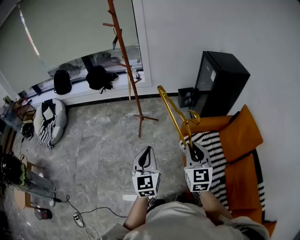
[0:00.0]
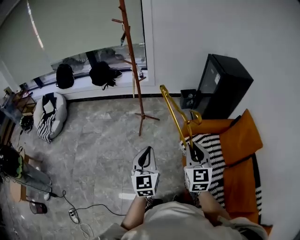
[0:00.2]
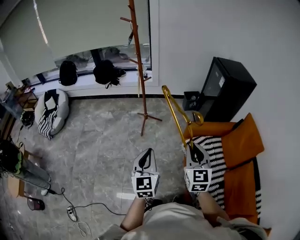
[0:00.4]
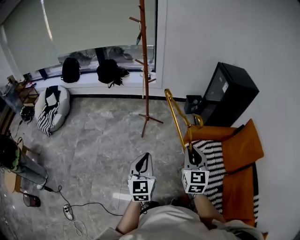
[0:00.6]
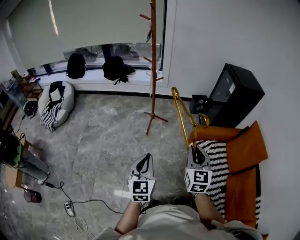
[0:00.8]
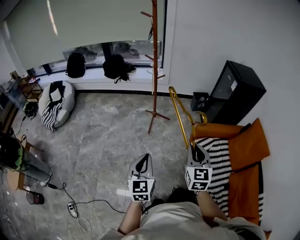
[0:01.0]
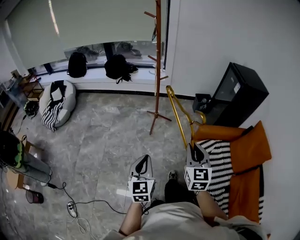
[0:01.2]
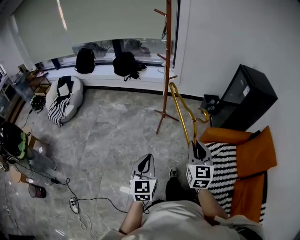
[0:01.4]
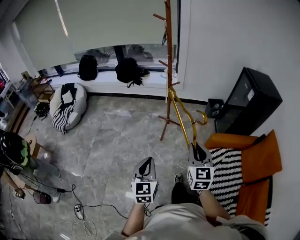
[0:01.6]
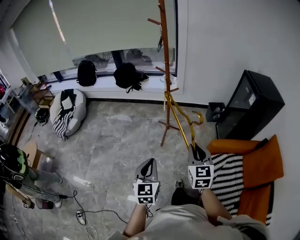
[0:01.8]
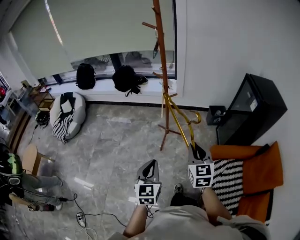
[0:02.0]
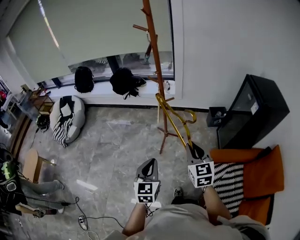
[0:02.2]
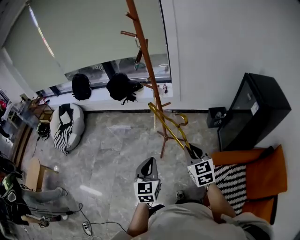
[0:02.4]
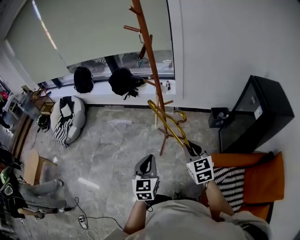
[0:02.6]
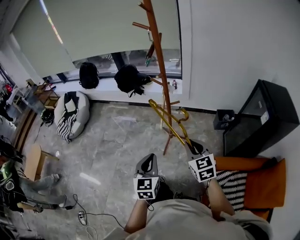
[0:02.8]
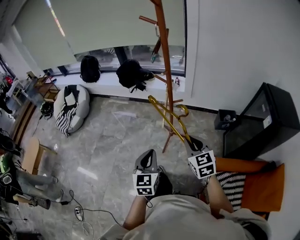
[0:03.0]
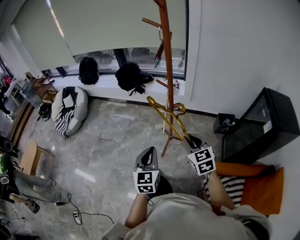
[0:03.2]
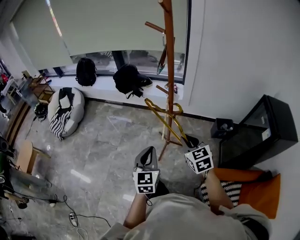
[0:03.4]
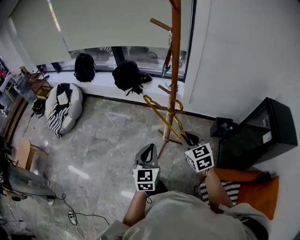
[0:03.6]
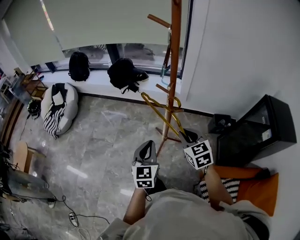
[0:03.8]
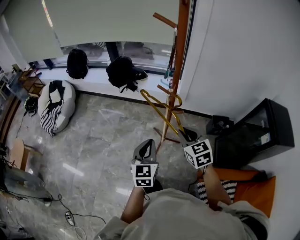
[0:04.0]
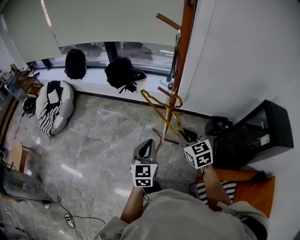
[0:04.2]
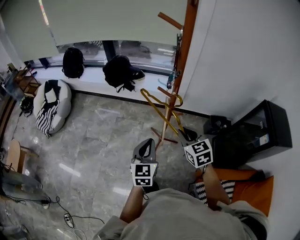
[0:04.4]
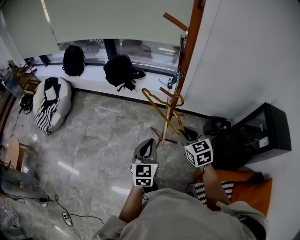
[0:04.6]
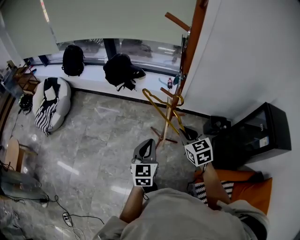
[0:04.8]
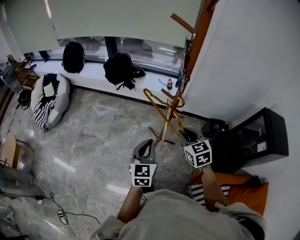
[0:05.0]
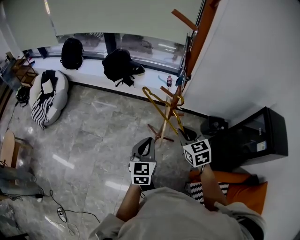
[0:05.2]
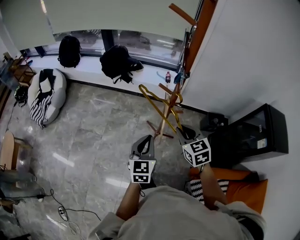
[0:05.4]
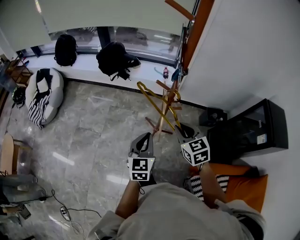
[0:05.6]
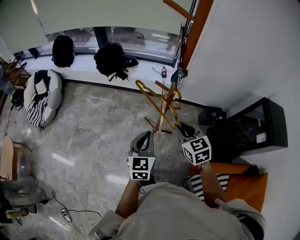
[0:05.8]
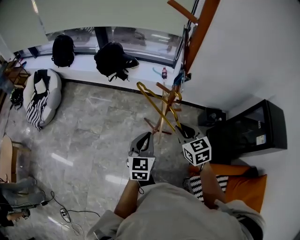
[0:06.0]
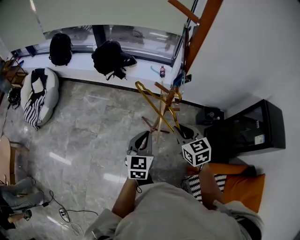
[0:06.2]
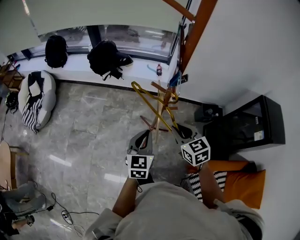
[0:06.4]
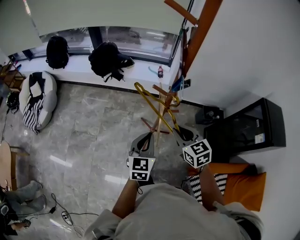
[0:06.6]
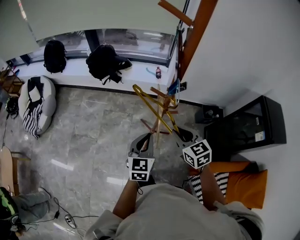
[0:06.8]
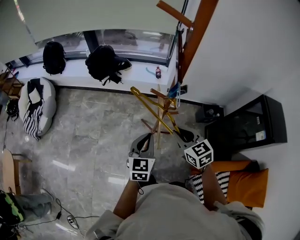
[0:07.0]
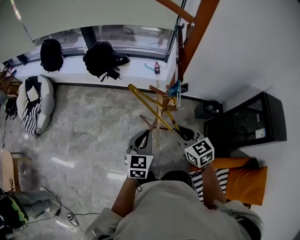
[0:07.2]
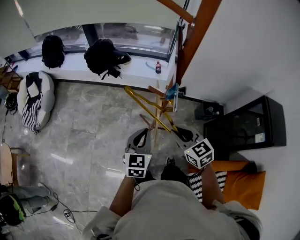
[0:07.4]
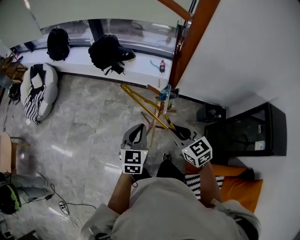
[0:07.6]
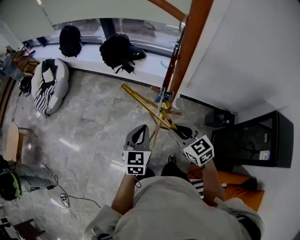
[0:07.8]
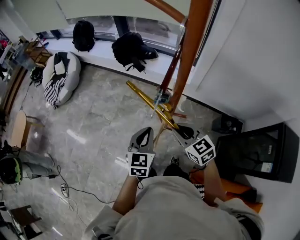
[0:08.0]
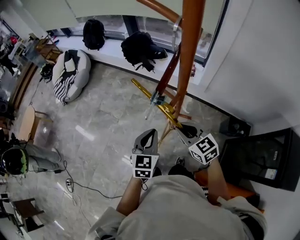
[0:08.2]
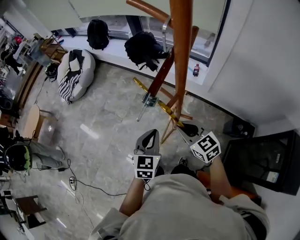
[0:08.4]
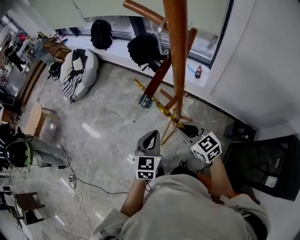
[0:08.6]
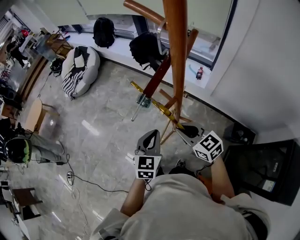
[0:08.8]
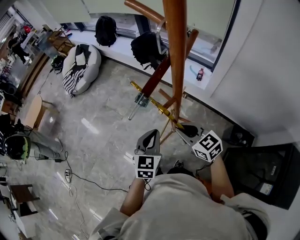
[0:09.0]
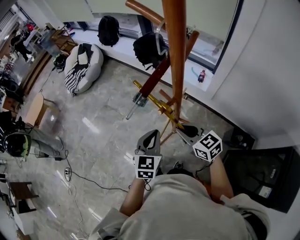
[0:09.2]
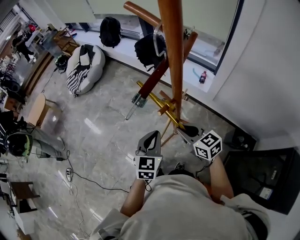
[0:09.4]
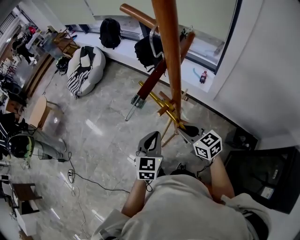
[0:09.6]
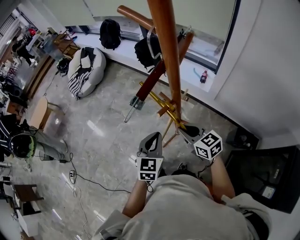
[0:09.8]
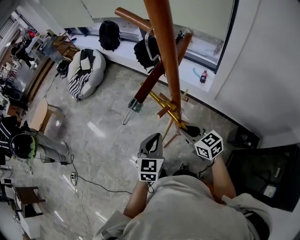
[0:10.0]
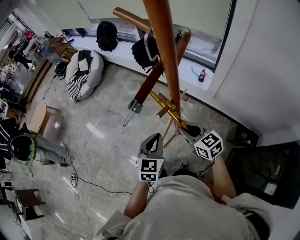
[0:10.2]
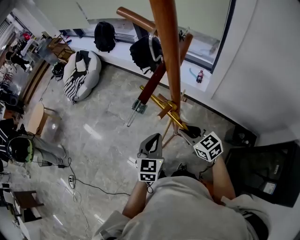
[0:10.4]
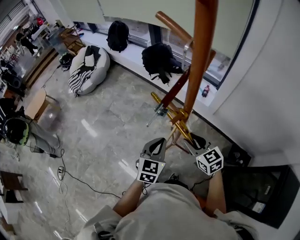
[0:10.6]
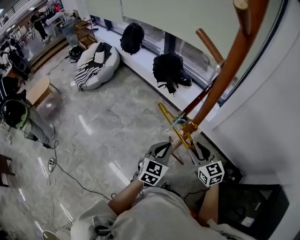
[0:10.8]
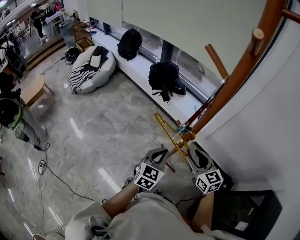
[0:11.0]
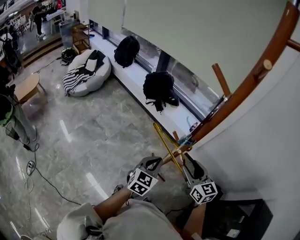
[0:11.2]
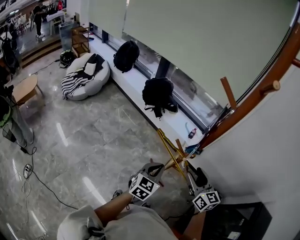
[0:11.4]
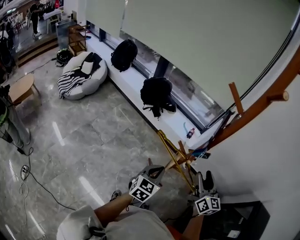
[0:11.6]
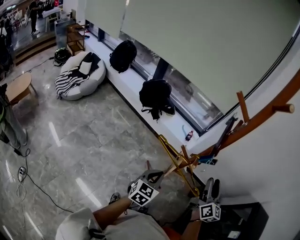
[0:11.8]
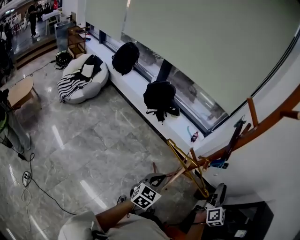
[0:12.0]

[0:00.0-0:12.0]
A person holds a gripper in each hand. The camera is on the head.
0.0 to 1.6 s: The left gripper shifts approximately 20 cm to the left. The right gripper goes approximately 20 cm to the left and forward.
1.6 to 3.0 s: Both grippers travel together forward, about 30 cm. The right gripper turns by approximately 30 degrees.
3.0 to 4.4 s: Both grippers travel together forward, some 20 cm.
4.4 to 6.0 s: The left gripper heads forward, covering approximately 5 cm.
6.0 to 7.6 s: The left gripper heads forward, covering some 10 cm.
7.6 to 9.0 s: The left gripper moves approximately 5 cm, and turns by about 20 degrees; the right gripper shifts by some 5 cm, and swivels about 30 degrees.
9.0 to 10.4 s: The grippers move only a little.
10.4 to 12.0 s: The right gripper moves upward, some 15 cm, tips its fingers upward by approximately 30 degrees, and opens its fingers, while the left gripper changes place by roughly 10 cm, and turns by about 20 degrees.

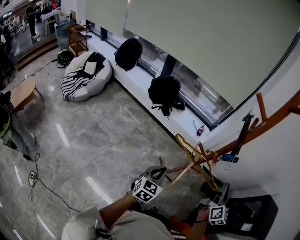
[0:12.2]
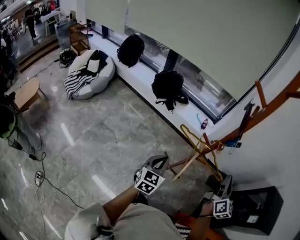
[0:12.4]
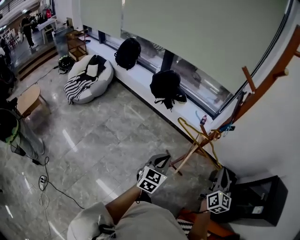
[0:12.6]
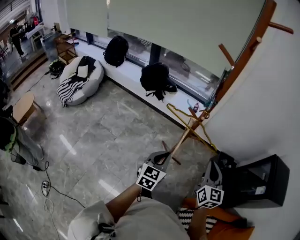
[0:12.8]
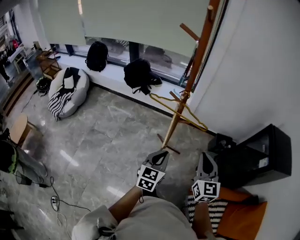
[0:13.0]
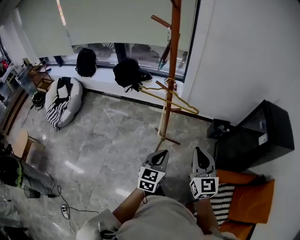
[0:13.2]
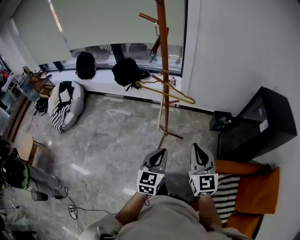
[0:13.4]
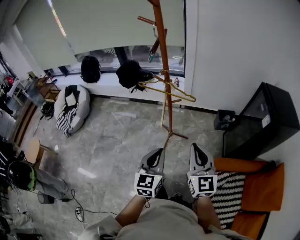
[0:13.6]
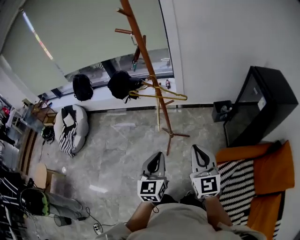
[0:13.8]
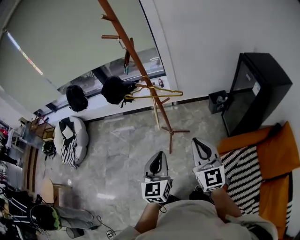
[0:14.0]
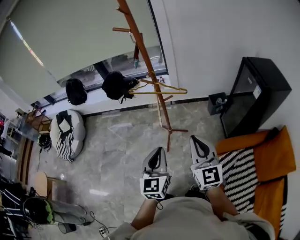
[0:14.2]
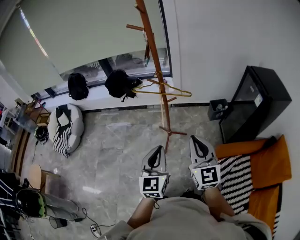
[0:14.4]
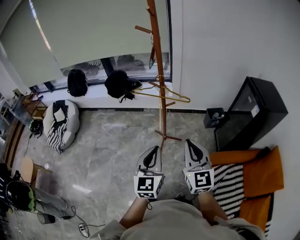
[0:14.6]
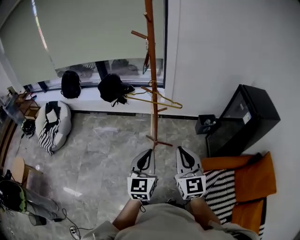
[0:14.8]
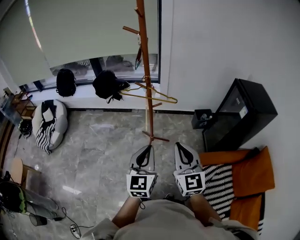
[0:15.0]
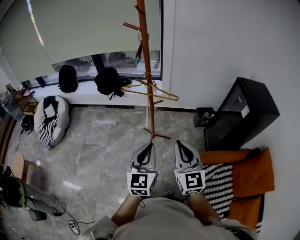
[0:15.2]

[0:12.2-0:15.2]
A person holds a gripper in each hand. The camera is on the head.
12.2 to 13.8 s: The right gripper travels backward by some 35 cm, and changes its angle by about 30 degrees. Meanwhile the left gripper moves backward and to the right, approximately 35 cm.

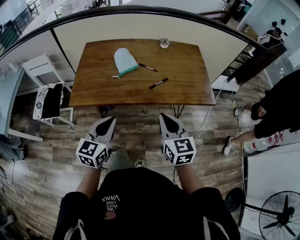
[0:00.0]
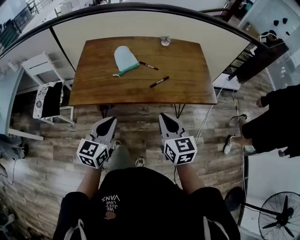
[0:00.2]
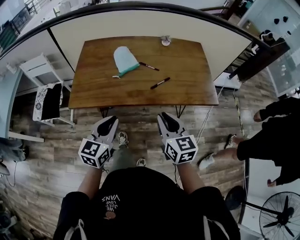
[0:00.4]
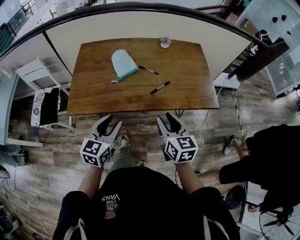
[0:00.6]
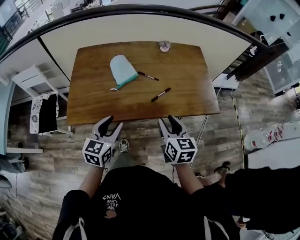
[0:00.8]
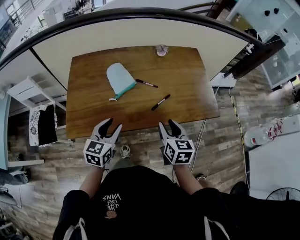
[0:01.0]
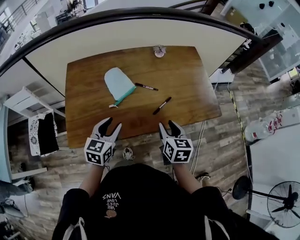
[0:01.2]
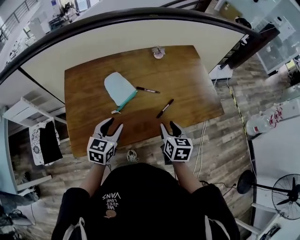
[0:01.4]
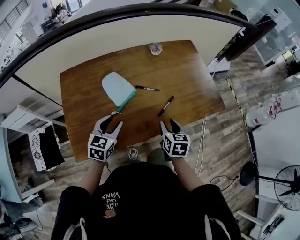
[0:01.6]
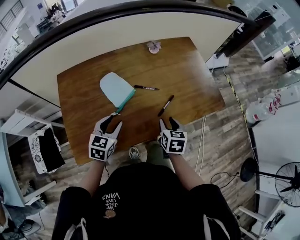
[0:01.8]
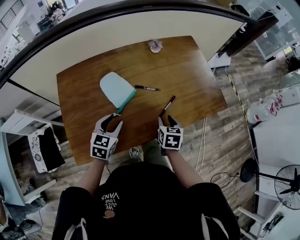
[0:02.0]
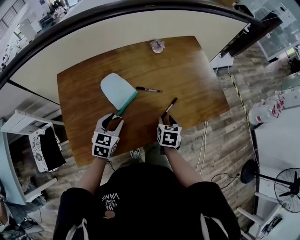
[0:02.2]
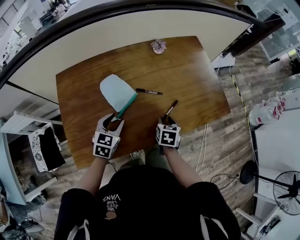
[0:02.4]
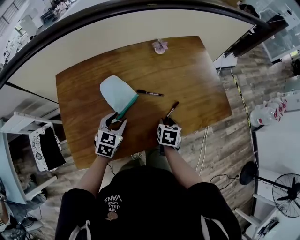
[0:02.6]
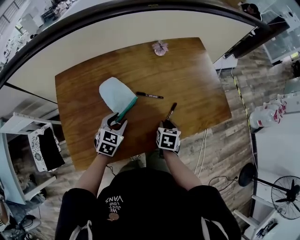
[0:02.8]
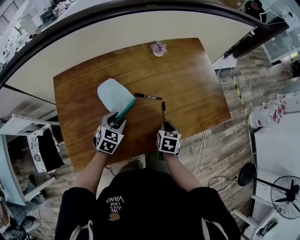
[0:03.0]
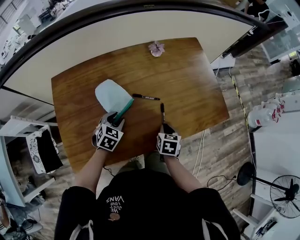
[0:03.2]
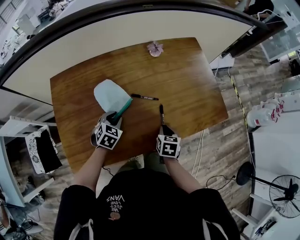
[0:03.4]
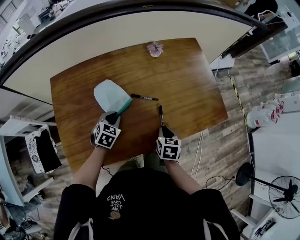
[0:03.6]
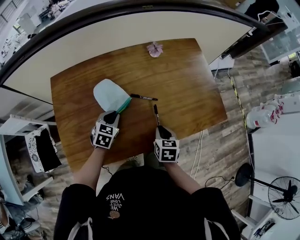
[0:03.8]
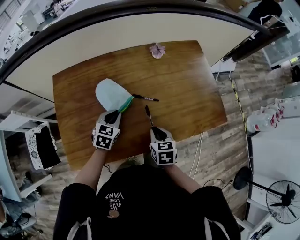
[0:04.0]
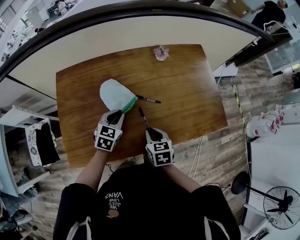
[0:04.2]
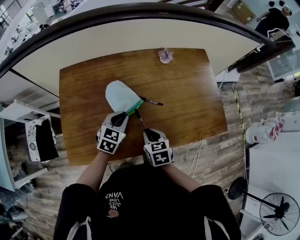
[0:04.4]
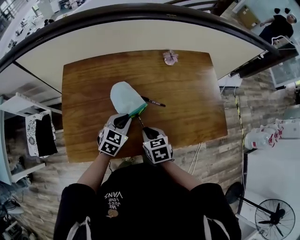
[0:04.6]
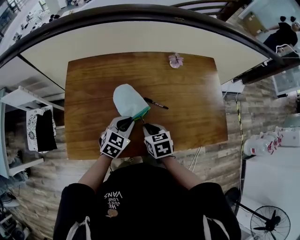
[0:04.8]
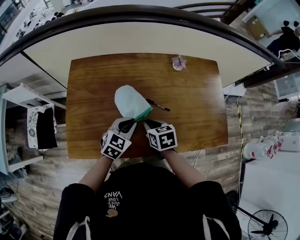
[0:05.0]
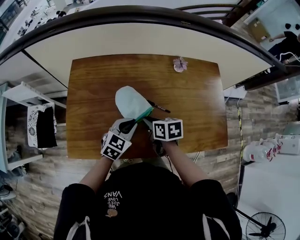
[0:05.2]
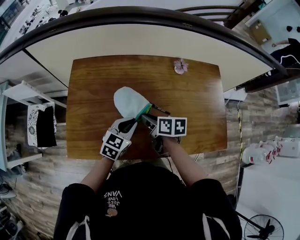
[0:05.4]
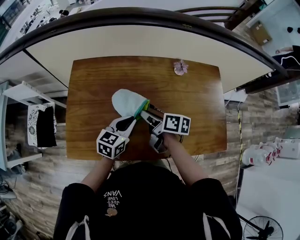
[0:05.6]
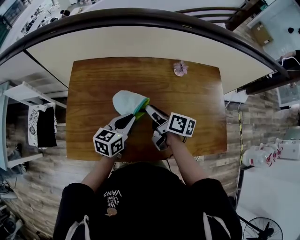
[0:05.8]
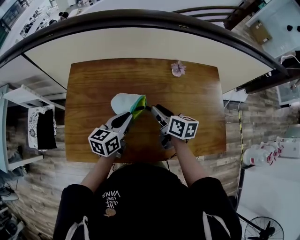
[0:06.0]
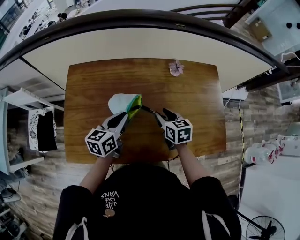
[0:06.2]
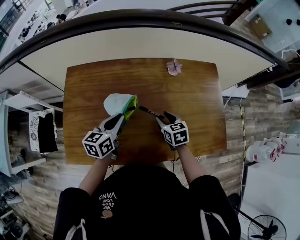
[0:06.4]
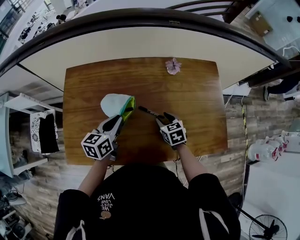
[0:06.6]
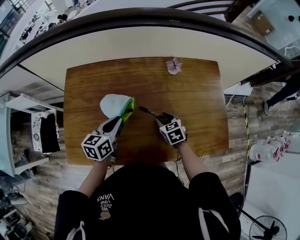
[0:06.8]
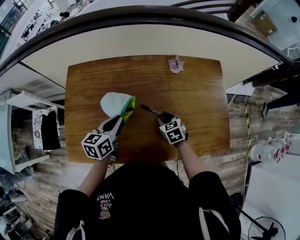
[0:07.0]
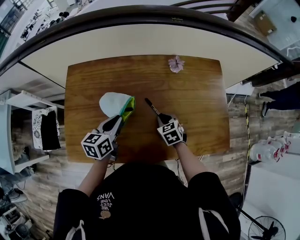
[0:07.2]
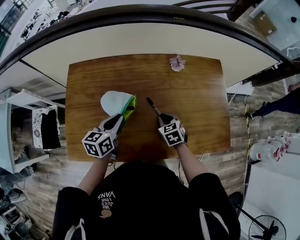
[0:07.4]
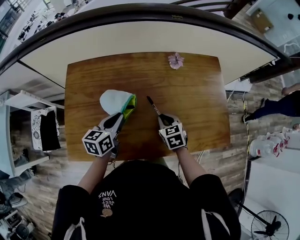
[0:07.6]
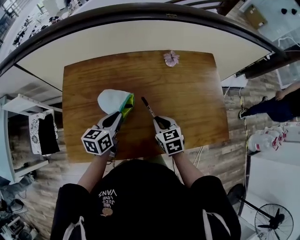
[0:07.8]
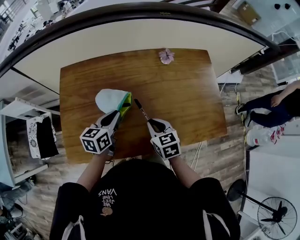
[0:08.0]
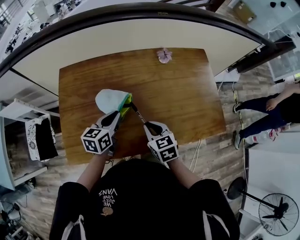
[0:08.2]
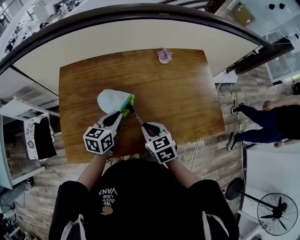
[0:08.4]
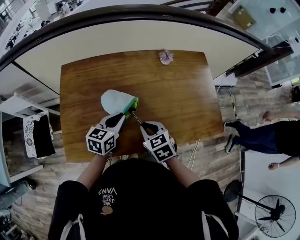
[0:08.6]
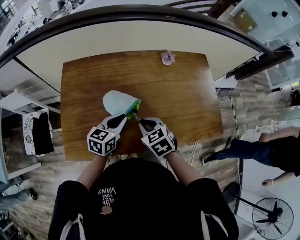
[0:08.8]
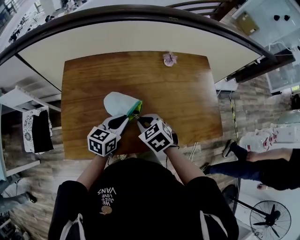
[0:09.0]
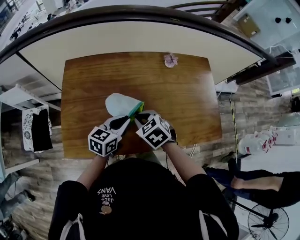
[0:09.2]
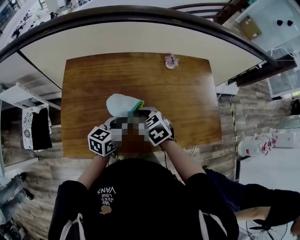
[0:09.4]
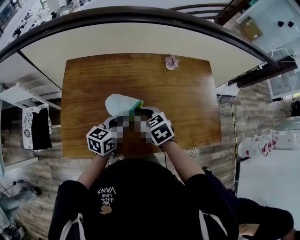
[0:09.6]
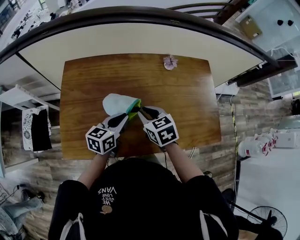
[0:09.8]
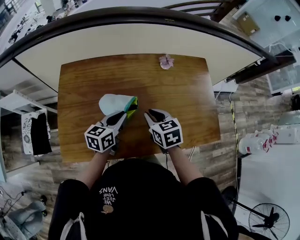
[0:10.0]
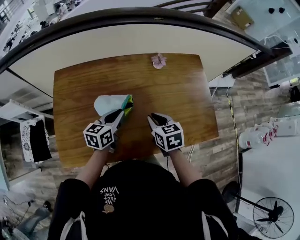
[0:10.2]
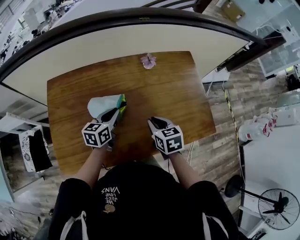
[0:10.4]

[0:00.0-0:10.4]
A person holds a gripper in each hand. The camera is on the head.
0.0 to 1.4 s: The right gripper is displaced forward and downward by some 25 cm, changes its angle by approximately 30 degrees, and opens its fingers. Meanwhile the left gripper goes some 25 cm forward, and opens.
1.4 to 3.0 s: Both grippers move downward and forward, roughly 15 cm. The right gripper turns by about 20 degrees; the left gripper rotates some 20 degrees.
3.0 to 4.4 s: The right gripper moves to the left and upward, approximately 10 cm, and turns by some 30 degrees; the left gripper is displaced upward by some 5 cm, and closes.
4.4 to 6.0 s: The left gripper travels upward by about 5 cm, and swivels some 40 degrees, while the right gripper travels forward and upward by approximately 15 cm, and swivels approximately 30 degrees.
6.0 to 7.4 s: The right gripper shifts some 10 cm downward, and turns by approximately 50 degrees.
7.4 to 9.0 s: The left gripper travels backward by roughly 5 cm, while the right gripper shifts some 20 cm to the left, upward and backward.
9.0 to 10.4 s: The right gripper shifts about 15 cm to the right, and changes its angle by some 40 degrees; the left gripper goes roughly 10 cm forward.
